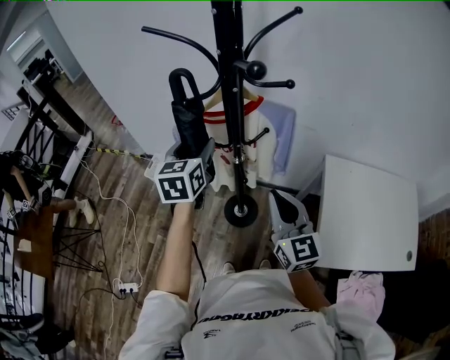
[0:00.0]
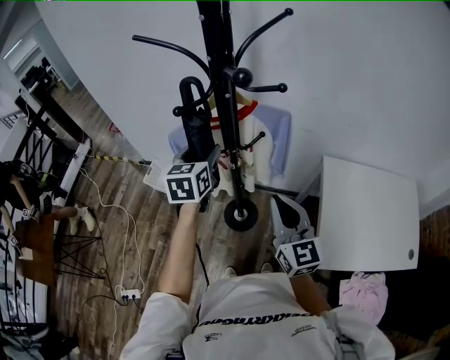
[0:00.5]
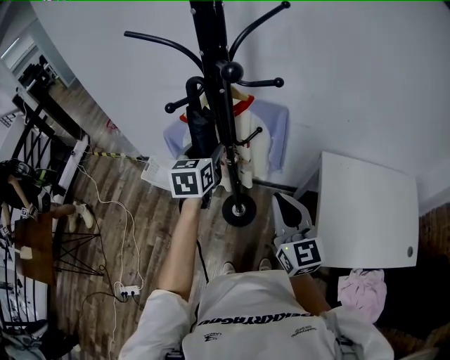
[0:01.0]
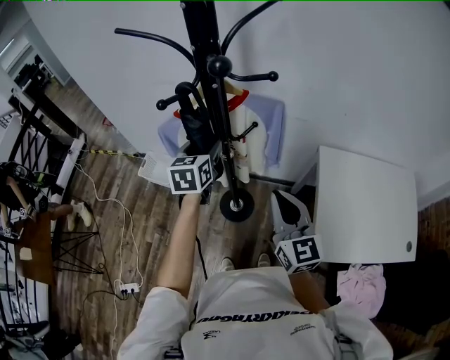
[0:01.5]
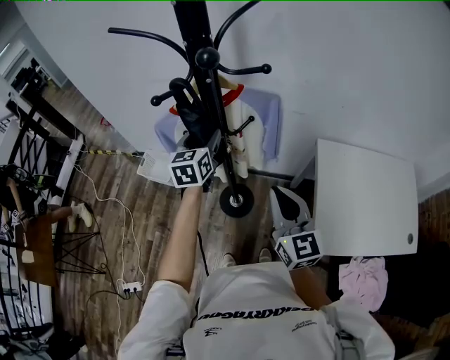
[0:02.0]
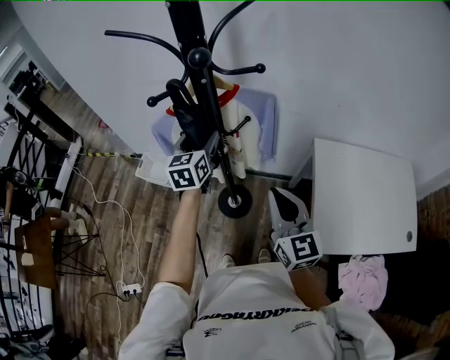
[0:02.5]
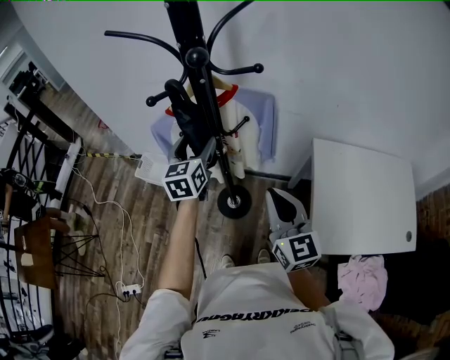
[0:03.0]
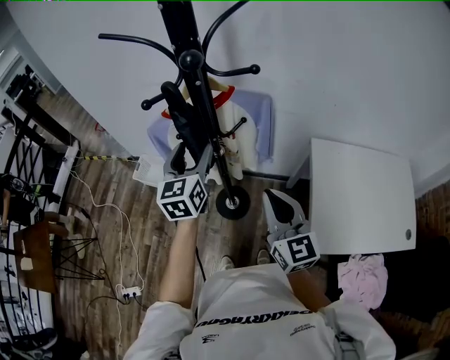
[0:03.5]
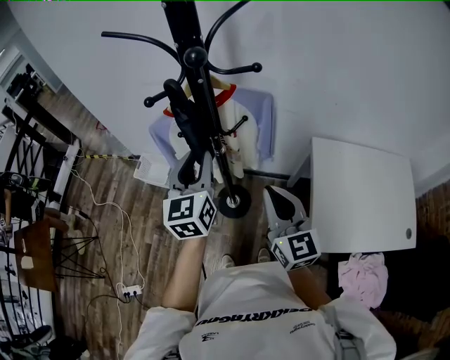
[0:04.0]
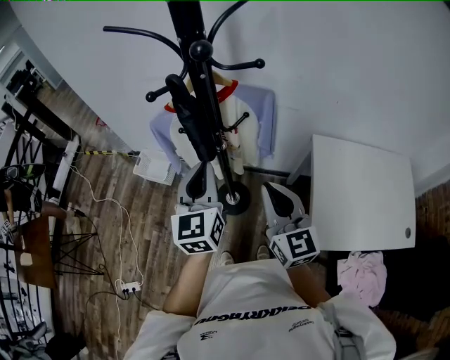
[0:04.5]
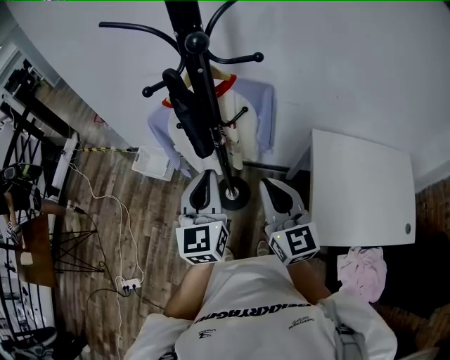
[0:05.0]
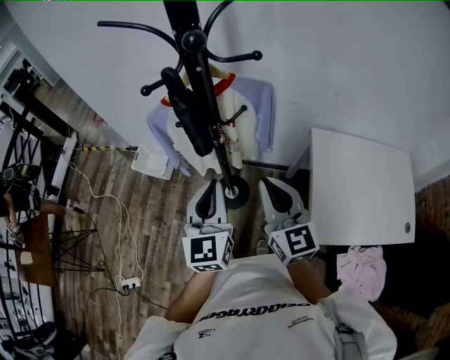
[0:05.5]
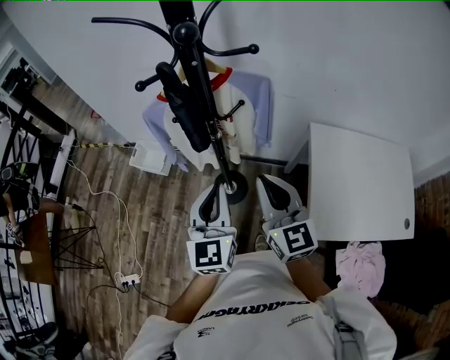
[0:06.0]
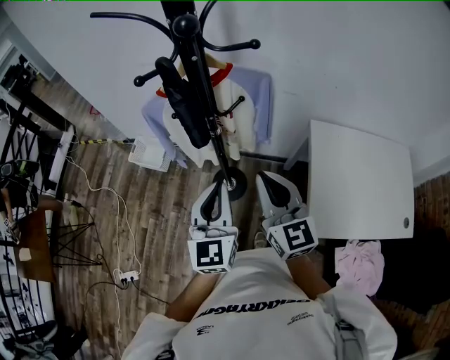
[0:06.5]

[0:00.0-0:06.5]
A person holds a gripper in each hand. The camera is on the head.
0:00.0 to 0:02.0: The left gripper heads downward, to the right and forward, covering some 10 cm.
0:02.0 to 0:04.5: The left gripper travels backward and upward by approximately 15 cm, and closes.
0:04.5 to 0:06.5: The left gripper heads backward, covering roughly 5 cm.

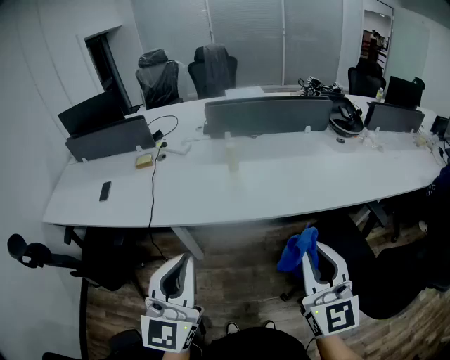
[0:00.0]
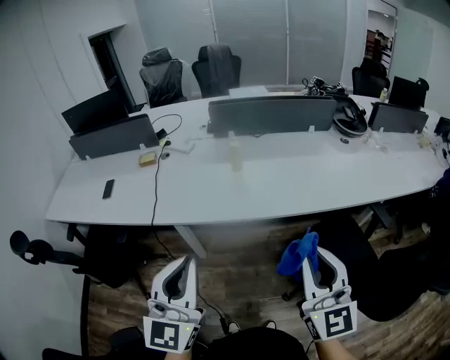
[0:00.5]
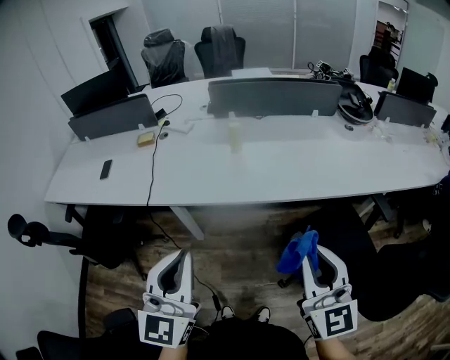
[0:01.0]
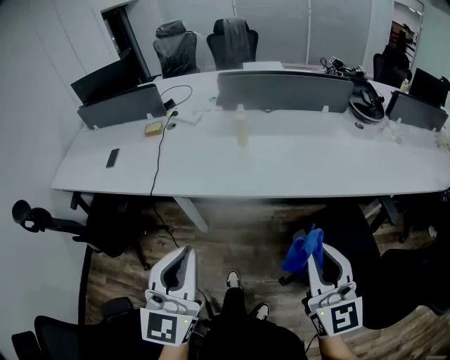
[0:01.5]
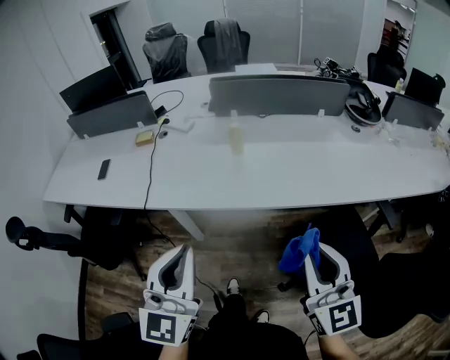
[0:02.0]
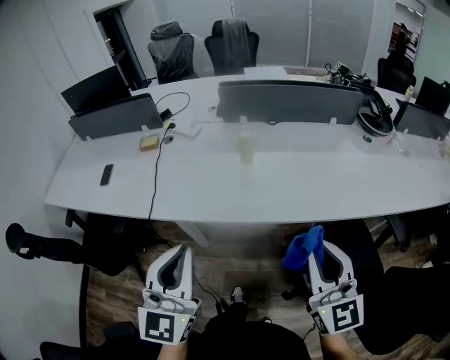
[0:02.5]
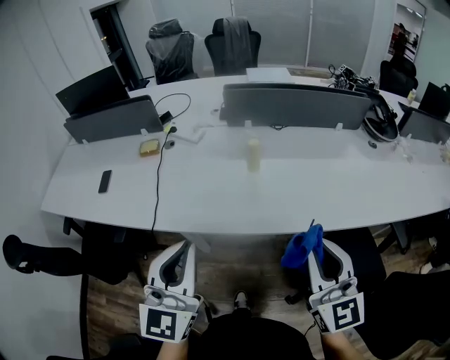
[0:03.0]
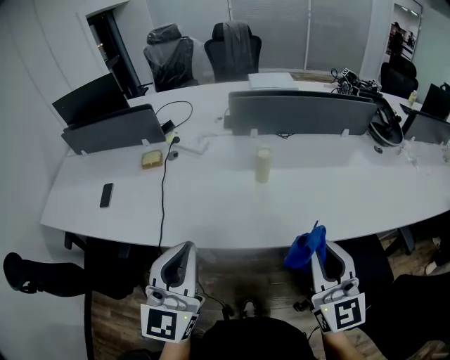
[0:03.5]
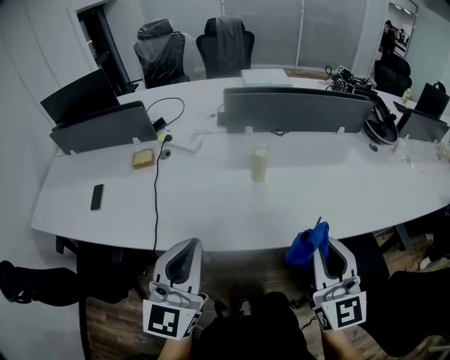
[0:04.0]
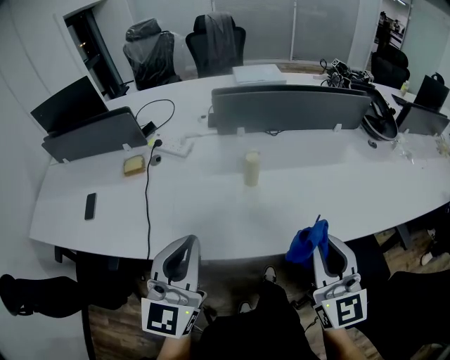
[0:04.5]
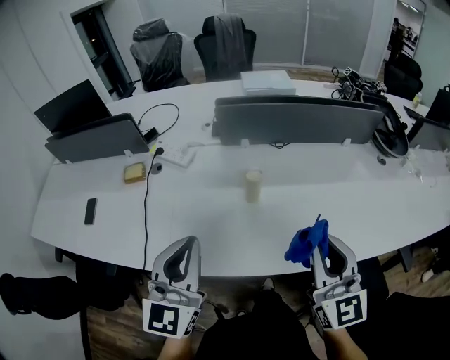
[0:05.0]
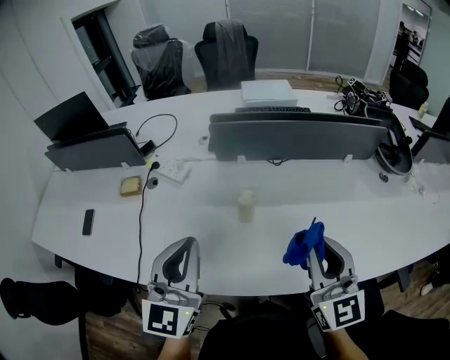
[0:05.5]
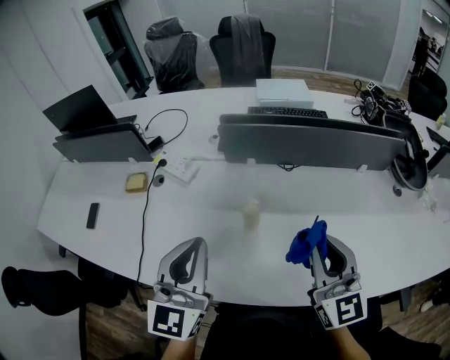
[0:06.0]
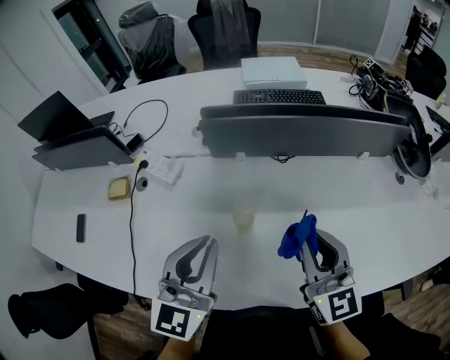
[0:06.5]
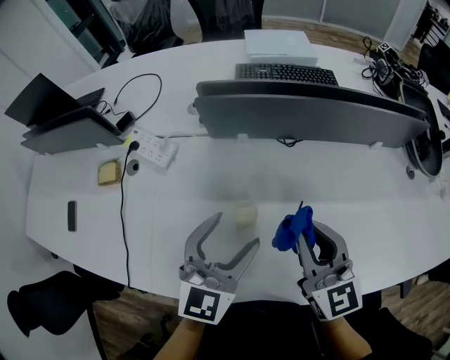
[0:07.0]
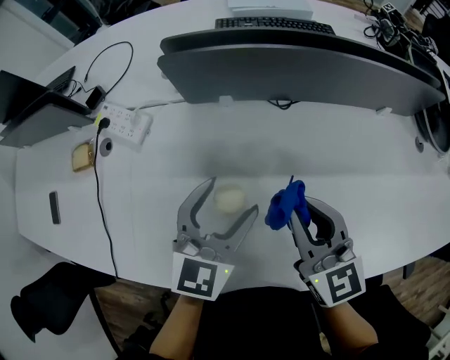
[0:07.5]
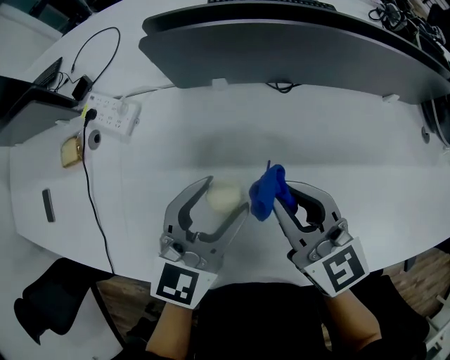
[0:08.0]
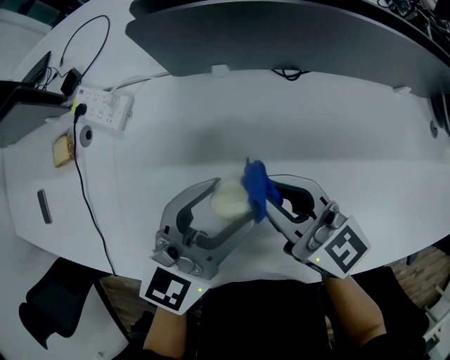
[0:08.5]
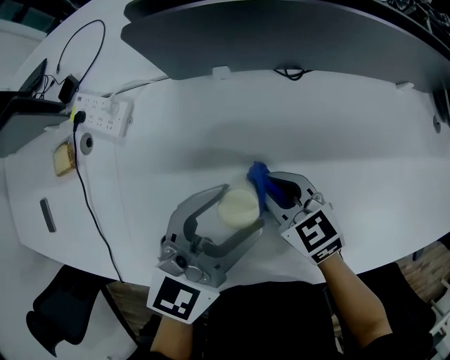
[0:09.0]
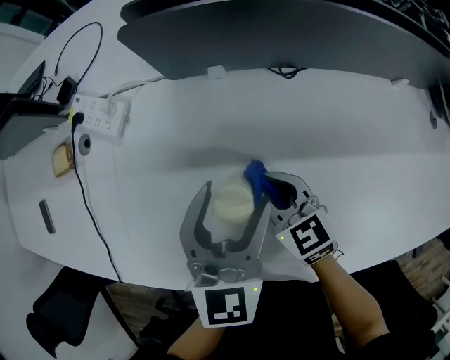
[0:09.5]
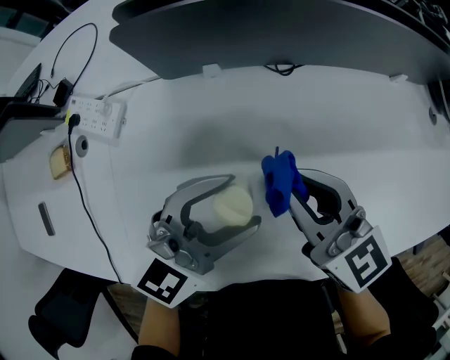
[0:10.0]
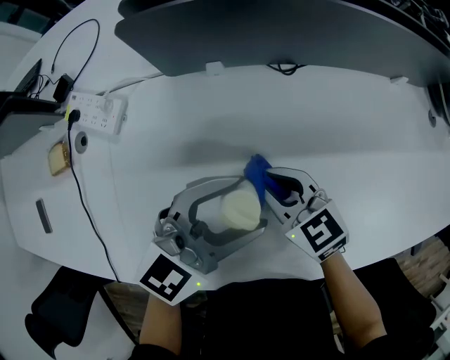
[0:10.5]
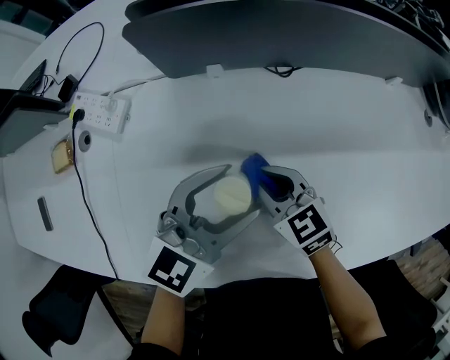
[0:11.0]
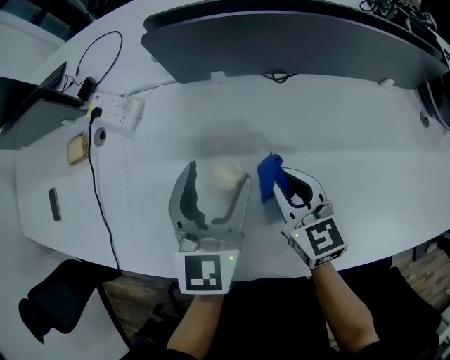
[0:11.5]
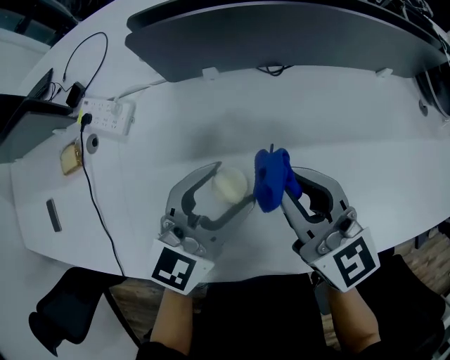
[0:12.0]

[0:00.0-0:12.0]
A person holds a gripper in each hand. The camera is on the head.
0:00.0 to 0:02.0: The right gripper shifts by about 5 cm. The left gripper ends up roughly 5 cm from where it was.
0:02.0 to 0:04.0: Both grippers travel together forward and to the left, some 20 cm.
0:04.0 to 0:06.0: The left gripper goes roughly 20 cm forward and to the right; the right gripper moves forward, approximately 25 cm.
0:06.0 to 0:08.0: The right gripper goes roughly 20 cm downward and forward, and swivels some 20 degrees; the left gripper heads downward, forward and to the right, covering about 25 cm, changes its angle by about 30 degrees, and opens.
0:08.0 to 0:10.0: The left gripper changes its angle by roughly 30 degrees; the right gripper reaches approximately 15 cm downward, then returns.
0:10.0 to 0:12.0: The right gripper travels downward and back again, approximately 15 cm each way.

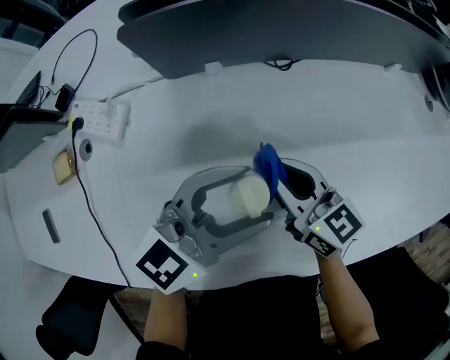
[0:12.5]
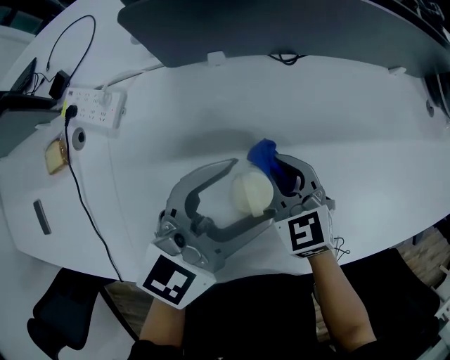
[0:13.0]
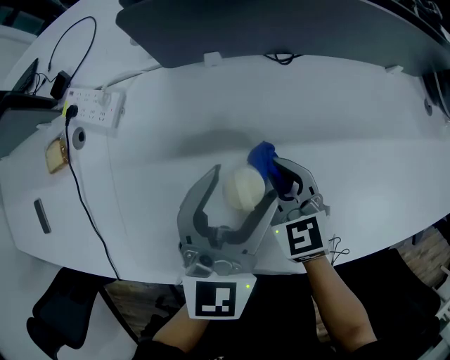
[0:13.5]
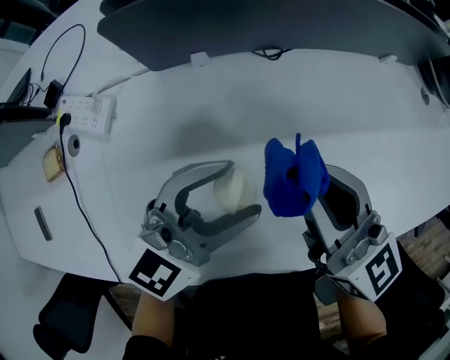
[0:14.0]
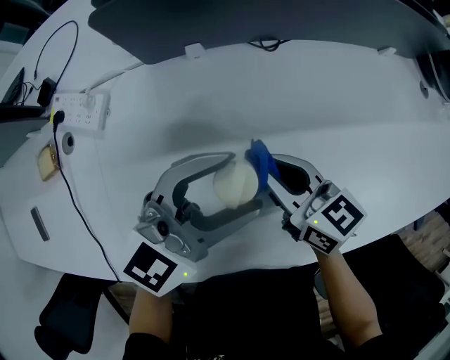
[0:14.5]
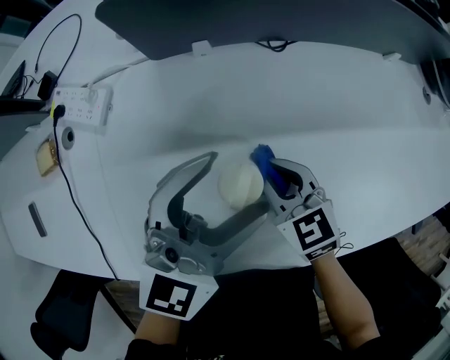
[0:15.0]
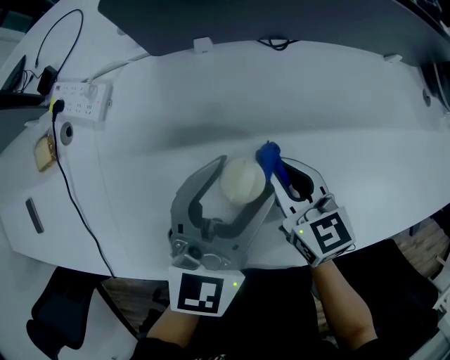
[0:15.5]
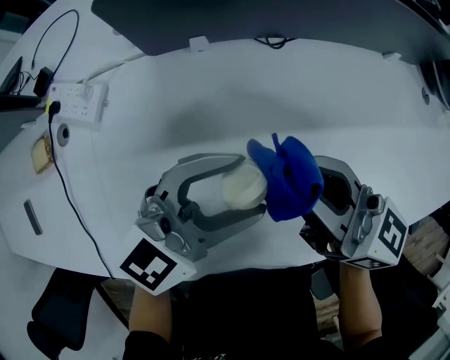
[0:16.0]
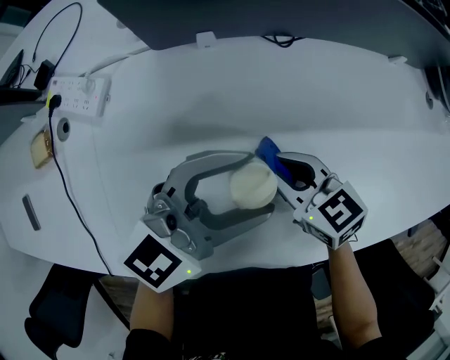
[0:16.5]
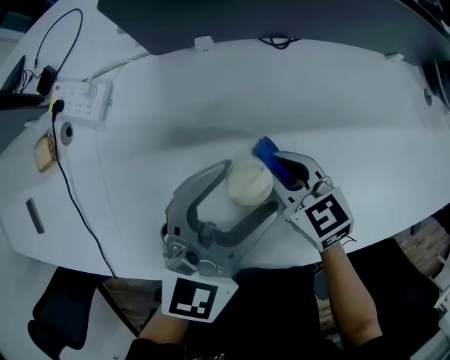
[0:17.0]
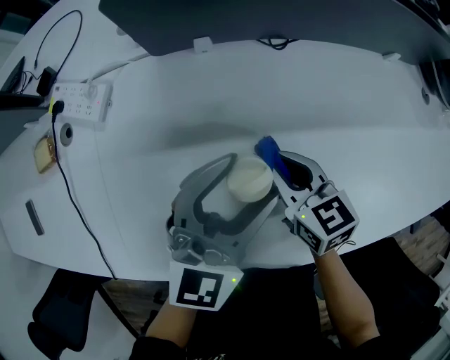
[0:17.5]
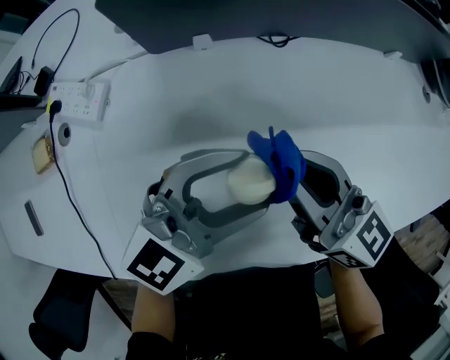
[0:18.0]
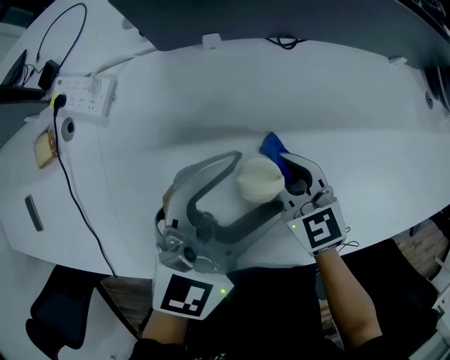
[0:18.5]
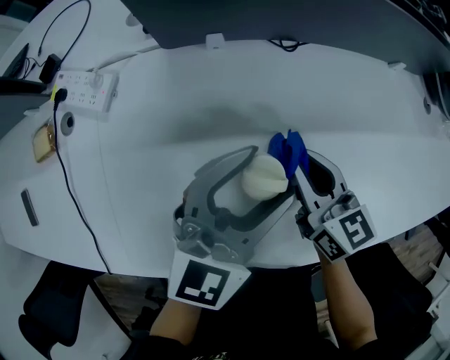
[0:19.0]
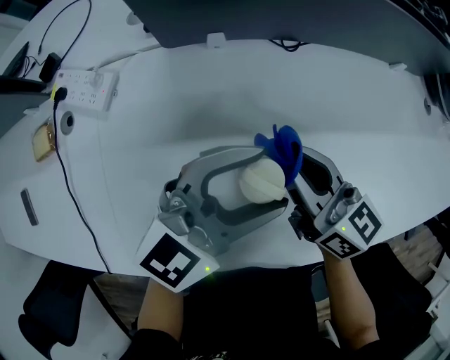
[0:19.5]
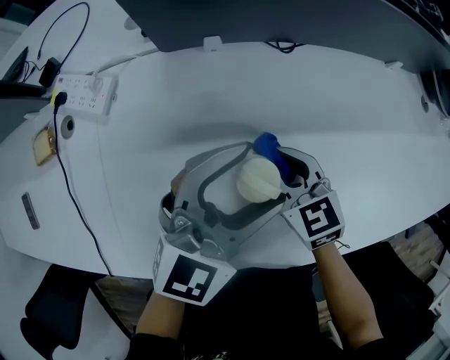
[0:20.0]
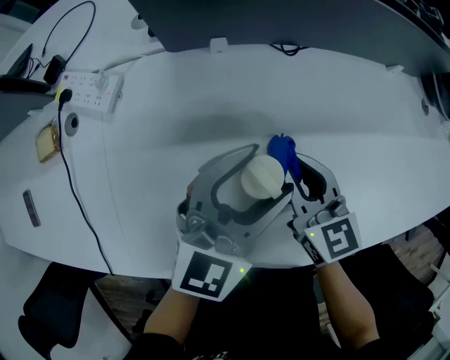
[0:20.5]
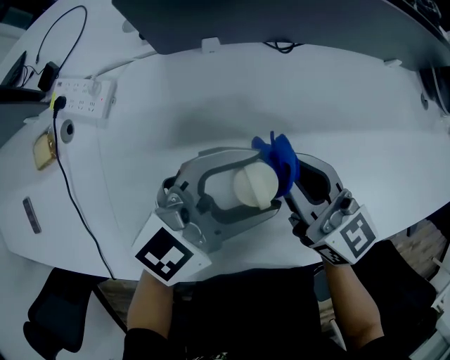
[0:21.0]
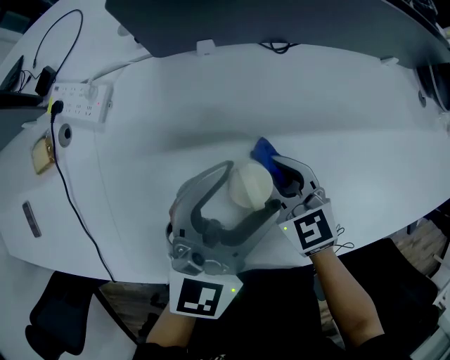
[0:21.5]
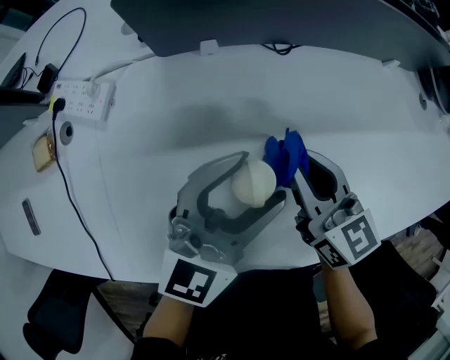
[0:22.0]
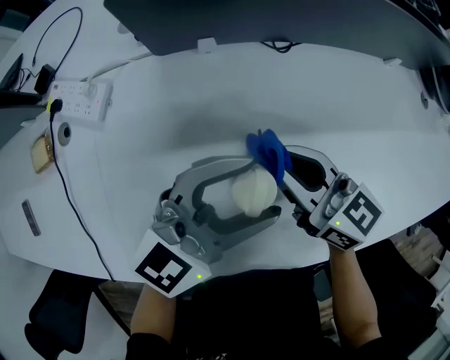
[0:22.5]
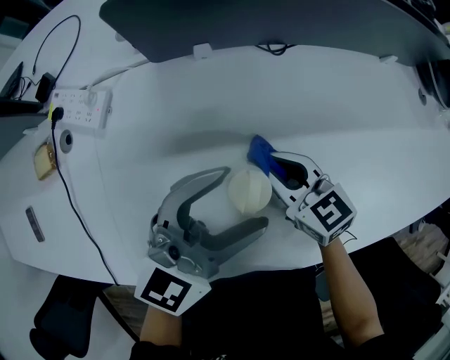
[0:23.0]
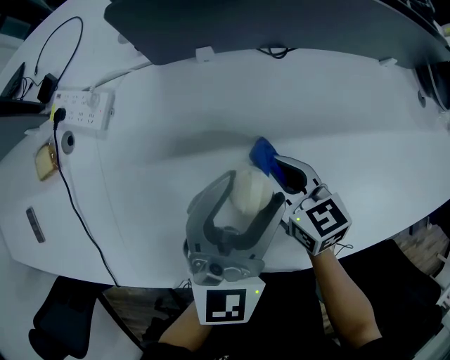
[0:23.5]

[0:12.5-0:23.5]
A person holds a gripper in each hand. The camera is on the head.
0:12.5 to 0:14.5: The right gripper moves up and down over some 15 cm, changing direction 2 times.
0:14.5 to 0:16.0: The right gripper goes roughly 10 cm upward, and changes its angle by about 20 degrees.
0:16.0 to 0:18.0: The right gripper travels downward and back again, about 15 cm each way.
0:18.0 to 0:20.0: The right gripper goes up and down, some 15 cm each way, reversing 2 times, and tilts its fingers about 30 degrees downward.
0:20.0 to 0:21.5: The right gripper reaches about 10 cm upward, then returns.
0:21.5 to 0:23.5: The right gripper moves about 10 cm upward and comes back.
